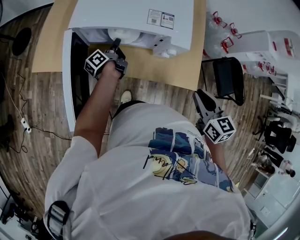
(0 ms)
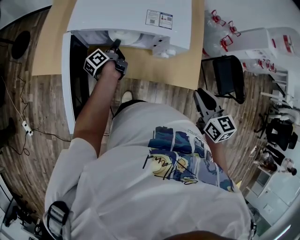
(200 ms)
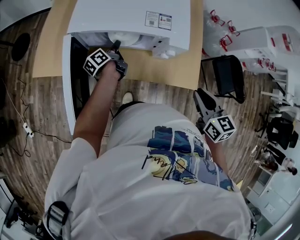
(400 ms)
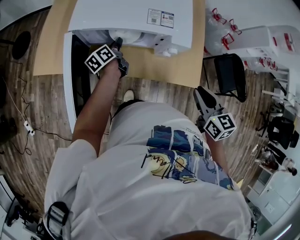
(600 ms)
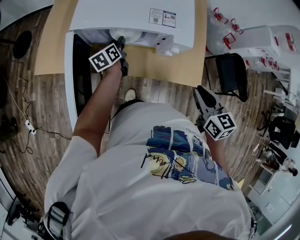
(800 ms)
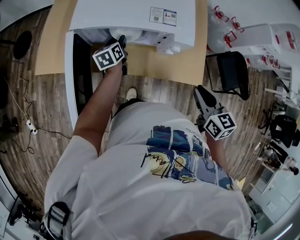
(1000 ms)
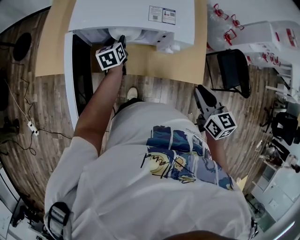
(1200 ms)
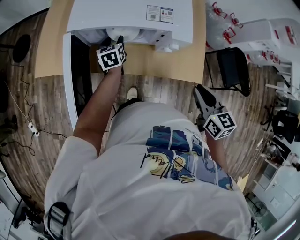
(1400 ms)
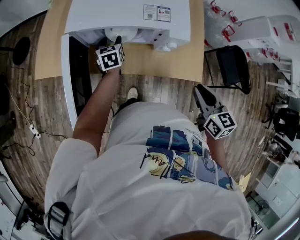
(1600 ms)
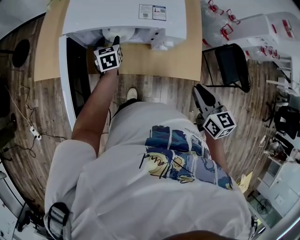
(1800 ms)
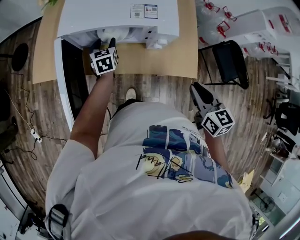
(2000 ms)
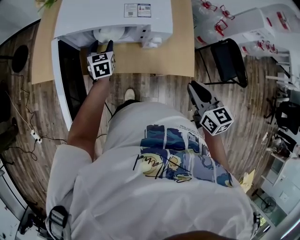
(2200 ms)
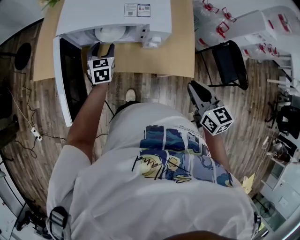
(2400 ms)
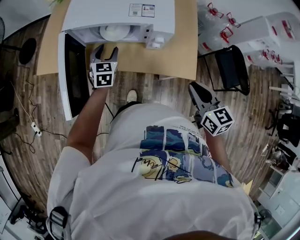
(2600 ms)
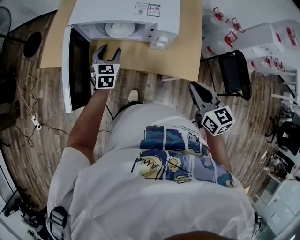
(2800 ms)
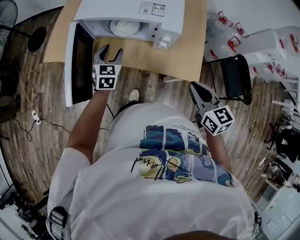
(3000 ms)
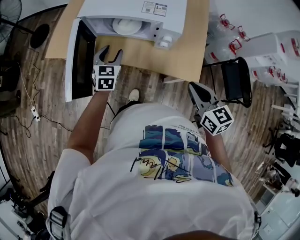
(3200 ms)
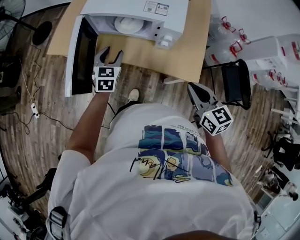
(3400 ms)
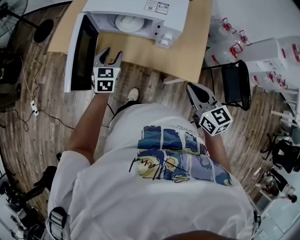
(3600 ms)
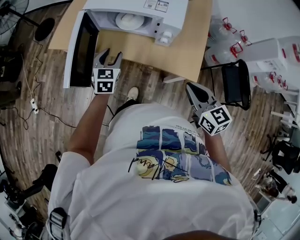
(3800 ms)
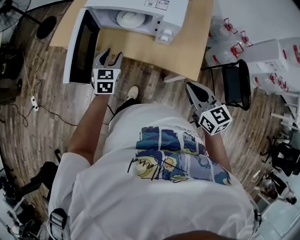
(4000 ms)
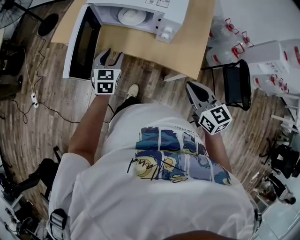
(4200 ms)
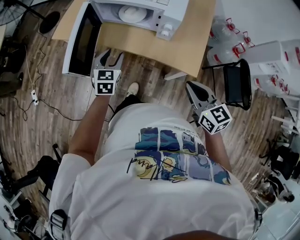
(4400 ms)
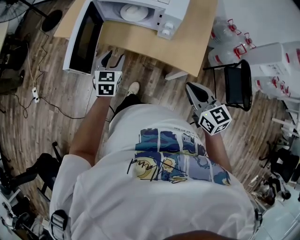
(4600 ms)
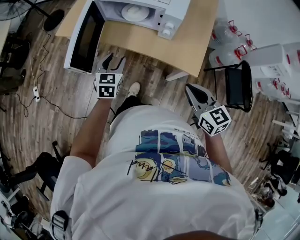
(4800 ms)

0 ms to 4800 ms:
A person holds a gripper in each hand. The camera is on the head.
0 ms to 1600 ms: The left gripper rotates around the line of its fingers by about 70 degrees, clockwise from behind, and opens its fingers.
1600 ms to 3200 ms: The left gripper travels backward and upward by approximately 15 cm, and rotates about 20 degrees.
3200 ms to 4800 ms: The right gripper heads backward, covering about 10 cm. Meanwhile the left gripper goes about 15 cm backward.

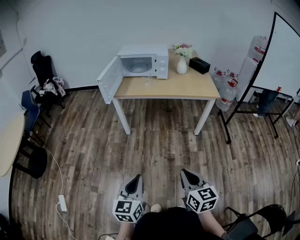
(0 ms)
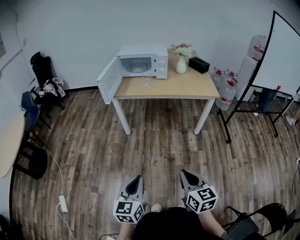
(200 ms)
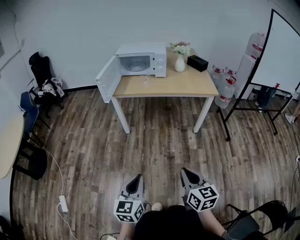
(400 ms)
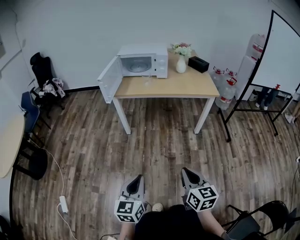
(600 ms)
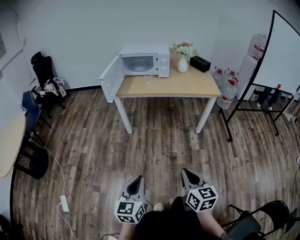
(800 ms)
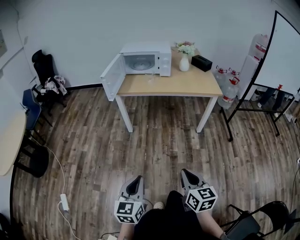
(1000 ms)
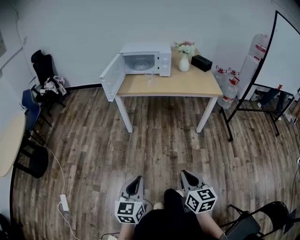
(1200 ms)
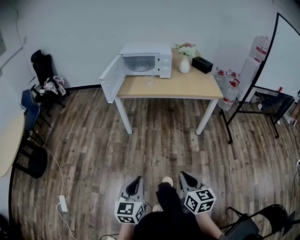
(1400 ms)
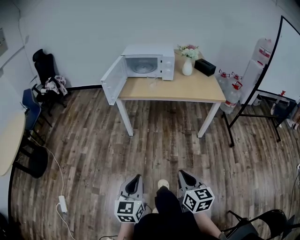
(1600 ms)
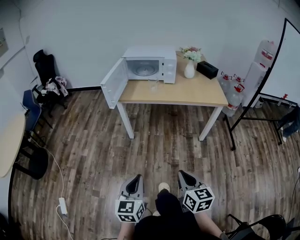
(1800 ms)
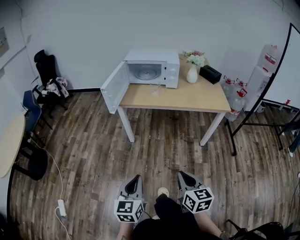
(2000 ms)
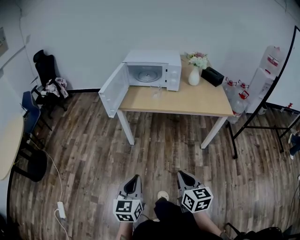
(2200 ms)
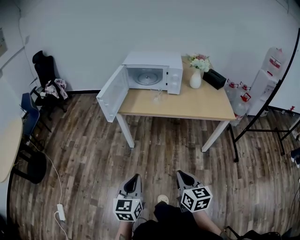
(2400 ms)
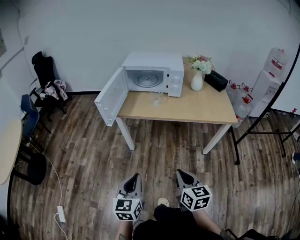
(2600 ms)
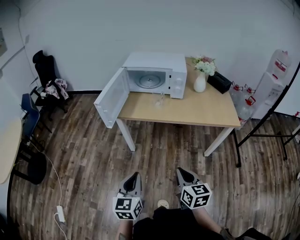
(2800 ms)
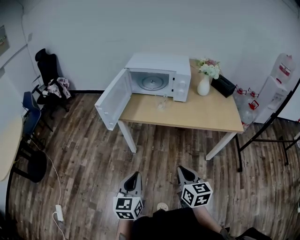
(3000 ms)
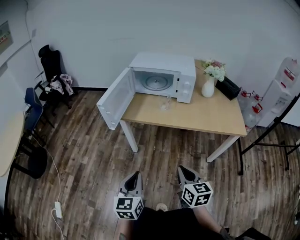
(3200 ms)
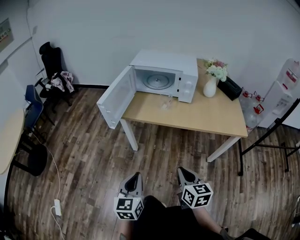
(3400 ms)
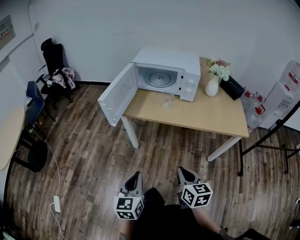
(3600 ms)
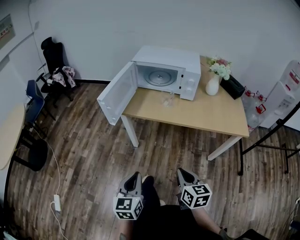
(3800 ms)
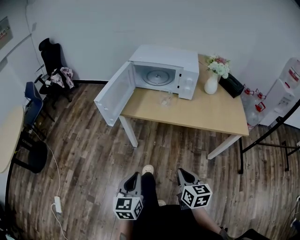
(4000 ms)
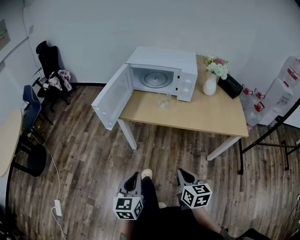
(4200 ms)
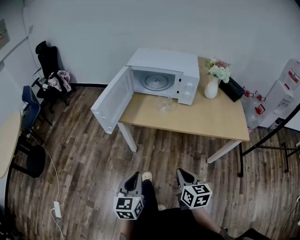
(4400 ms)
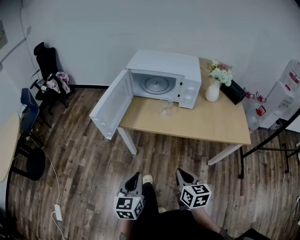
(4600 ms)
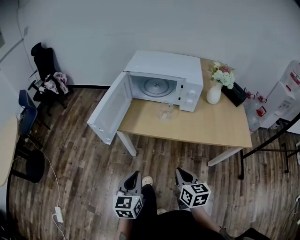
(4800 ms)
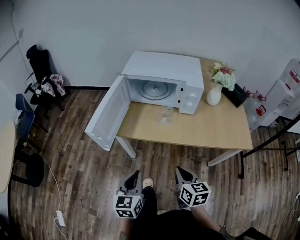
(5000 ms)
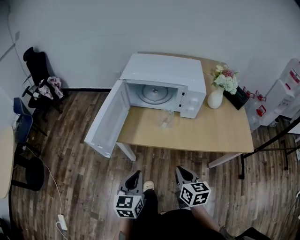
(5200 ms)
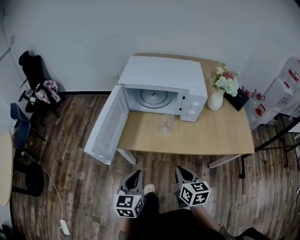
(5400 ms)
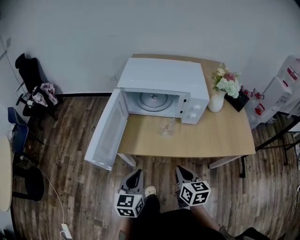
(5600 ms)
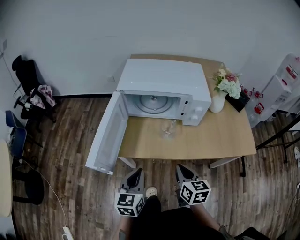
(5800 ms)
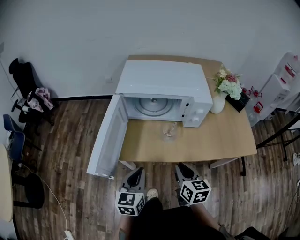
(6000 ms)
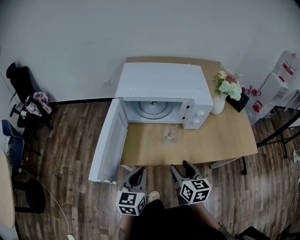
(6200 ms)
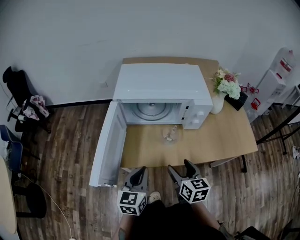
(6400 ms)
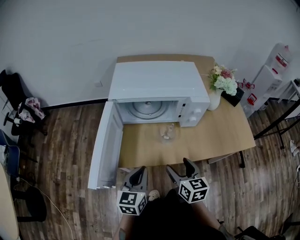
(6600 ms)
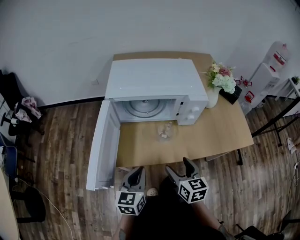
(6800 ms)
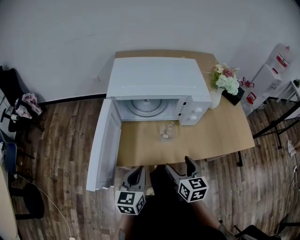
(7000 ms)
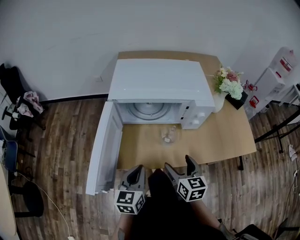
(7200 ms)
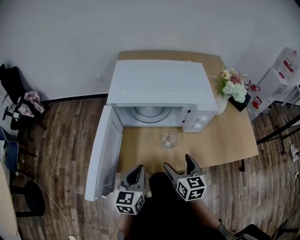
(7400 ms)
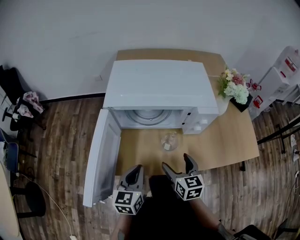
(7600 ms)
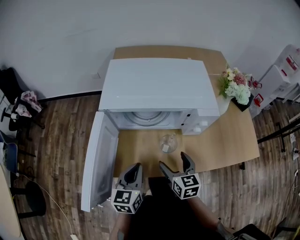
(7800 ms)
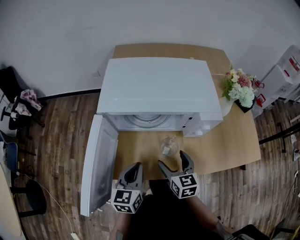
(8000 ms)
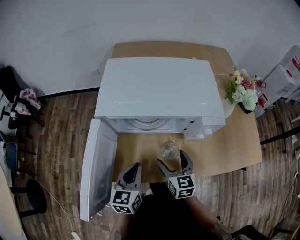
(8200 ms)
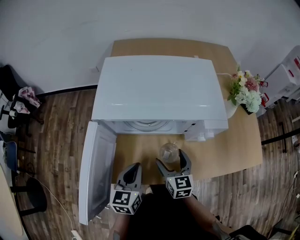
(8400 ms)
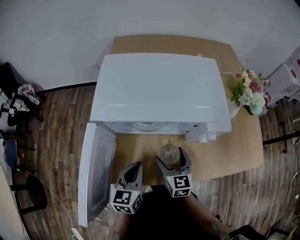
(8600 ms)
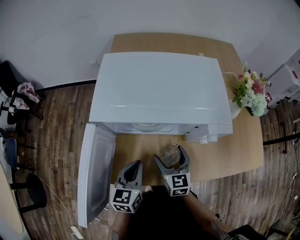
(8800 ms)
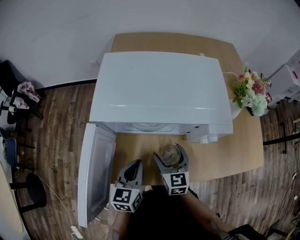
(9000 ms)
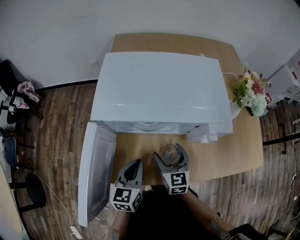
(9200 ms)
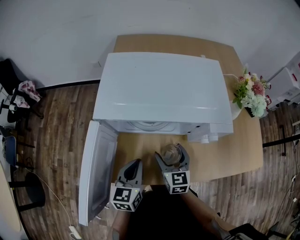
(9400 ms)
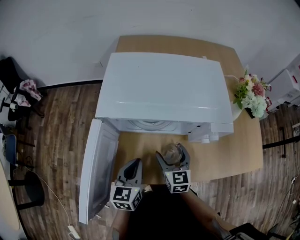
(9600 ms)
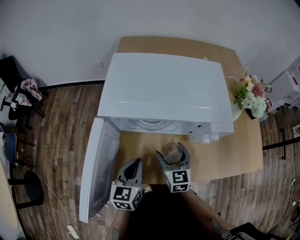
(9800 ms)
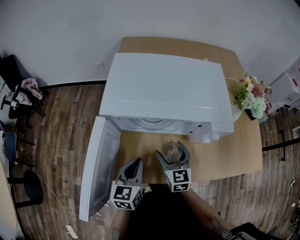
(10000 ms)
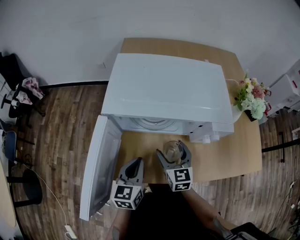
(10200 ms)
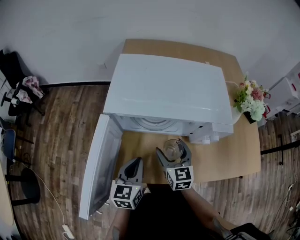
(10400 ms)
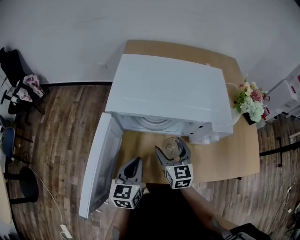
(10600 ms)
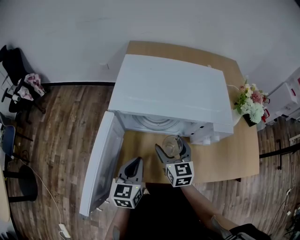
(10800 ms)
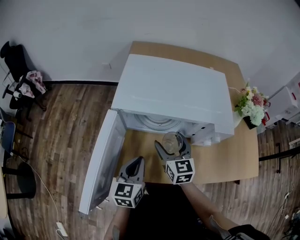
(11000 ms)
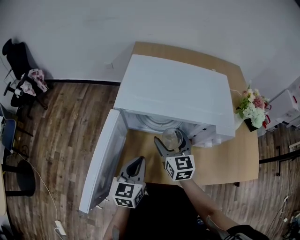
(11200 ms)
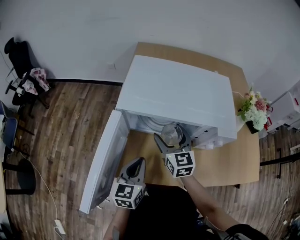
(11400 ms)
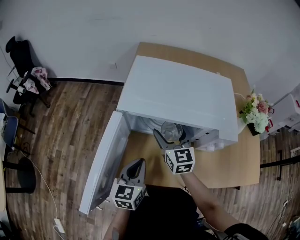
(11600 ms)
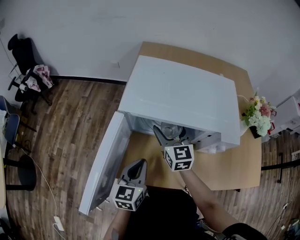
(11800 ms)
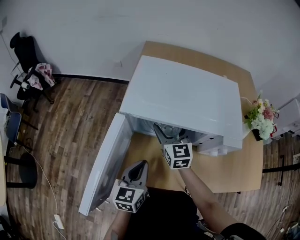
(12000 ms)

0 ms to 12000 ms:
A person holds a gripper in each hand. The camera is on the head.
0 ms to 1600 ms: The right gripper moves about 5 cm.
1600 ms to 3000 ms: Both grippers move forward, roughly 30 cm.
3000 ms to 4400 ms: Both grippers travel together forward, approximately 5 cm.
4400 ms to 6000 ms: Both grippers travel together forward, some 25 cm.
6000 ms to 7600 ms: The two grippers go some 10 cm forward. The right gripper opens.
7600 ms to 9000 ms: The two grippers go approximately 10 cm forward.
9000 ms to 10400 ms: The grippers stay close to where they were, moving slightly.
10400 ms to 12000 ms: The right gripper moves forward, to the left and upward, roughly 15 cm.

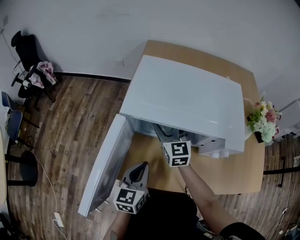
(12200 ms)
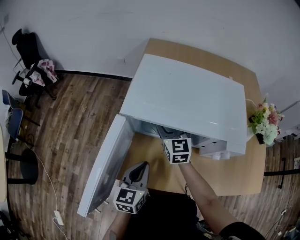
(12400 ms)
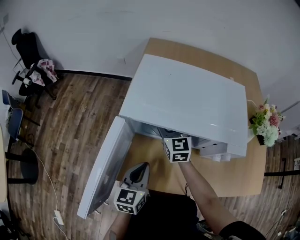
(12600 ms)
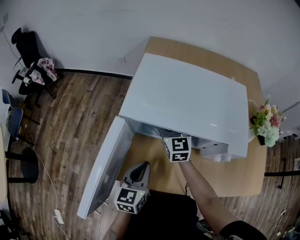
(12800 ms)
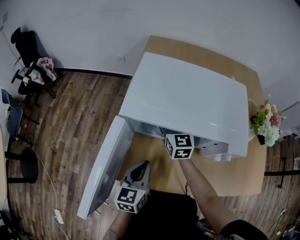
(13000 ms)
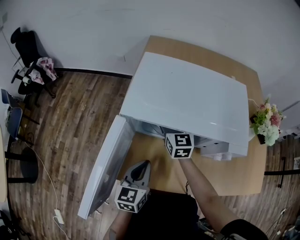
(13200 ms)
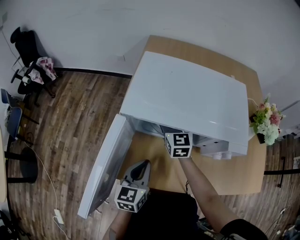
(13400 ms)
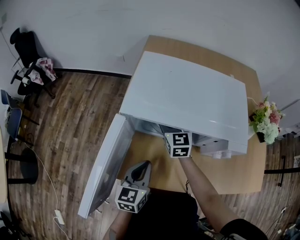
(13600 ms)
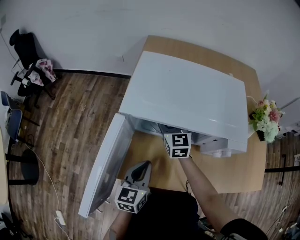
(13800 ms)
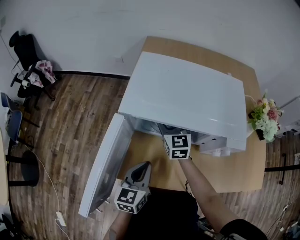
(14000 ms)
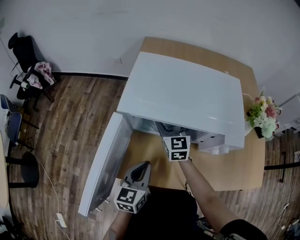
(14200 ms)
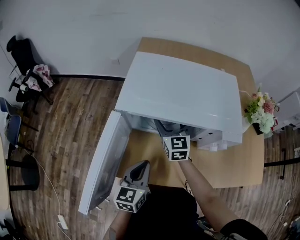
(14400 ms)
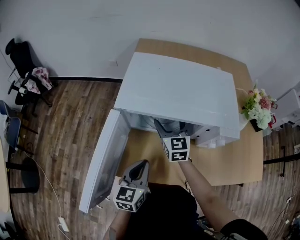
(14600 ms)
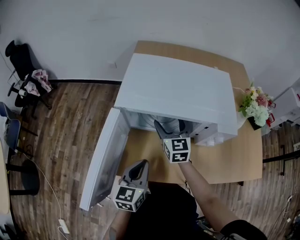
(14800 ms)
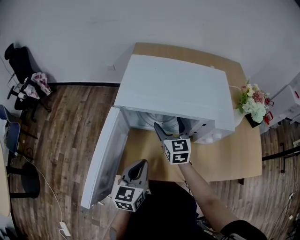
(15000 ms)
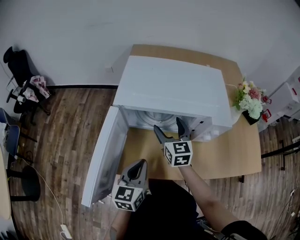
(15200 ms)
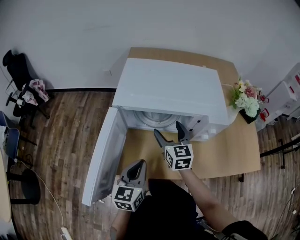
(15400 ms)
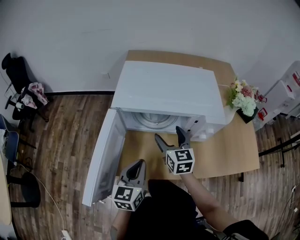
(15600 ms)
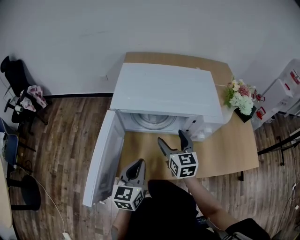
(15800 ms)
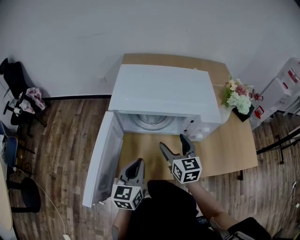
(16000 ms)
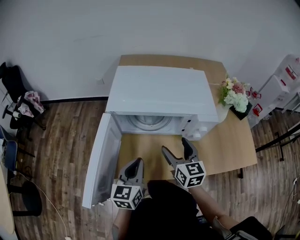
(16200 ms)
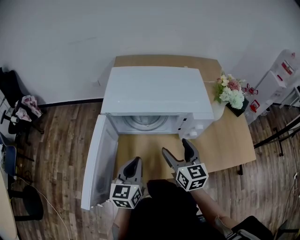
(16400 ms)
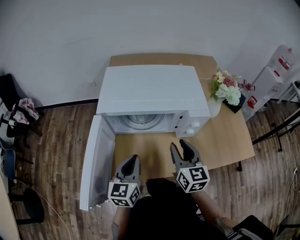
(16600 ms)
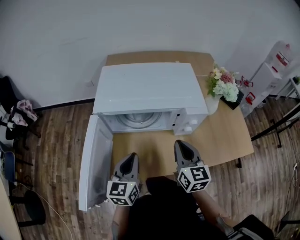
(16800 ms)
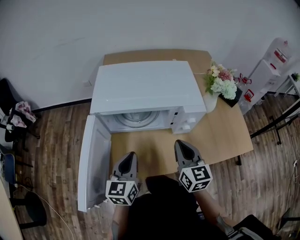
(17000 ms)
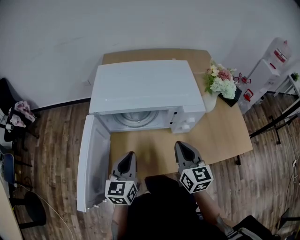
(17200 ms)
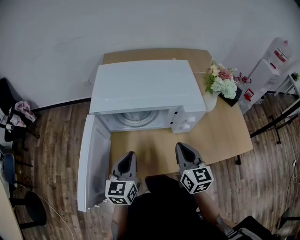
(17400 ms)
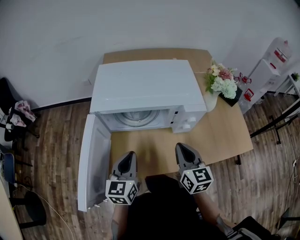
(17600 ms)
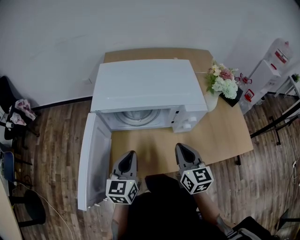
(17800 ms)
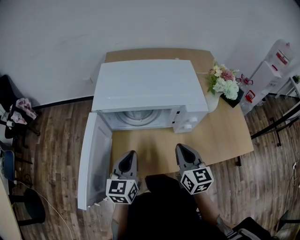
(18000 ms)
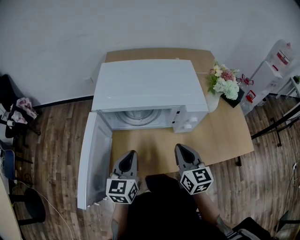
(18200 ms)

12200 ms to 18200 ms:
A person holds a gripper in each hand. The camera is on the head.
12200 ms to 13800 ms: The grippers make only small movements.
13800 ms to 15200 ms: The left gripper moves about 5 cm. The right gripper moves backward, about 10 cm.
15200 ms to 16600 ms: The right gripper heads backward, to the right and upward, covering approximately 15 cm, and closes.
16600 ms to 18200 ms: The right gripper closes its fingers.

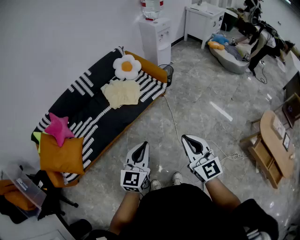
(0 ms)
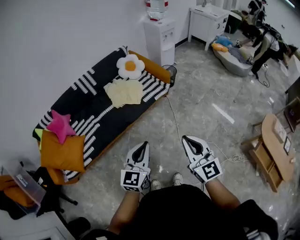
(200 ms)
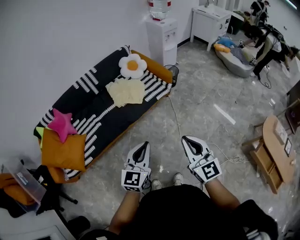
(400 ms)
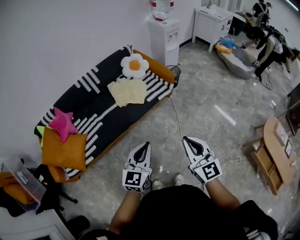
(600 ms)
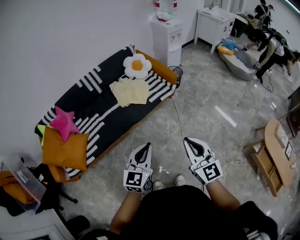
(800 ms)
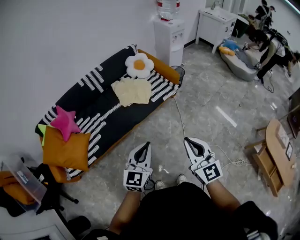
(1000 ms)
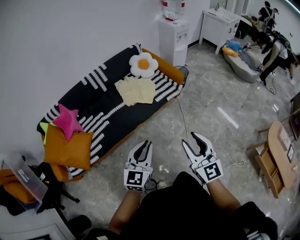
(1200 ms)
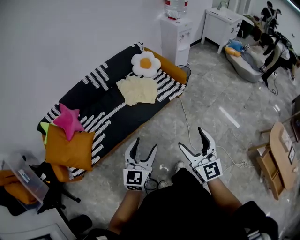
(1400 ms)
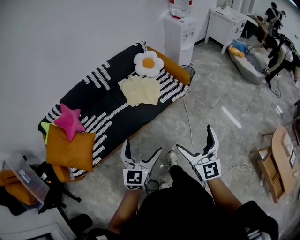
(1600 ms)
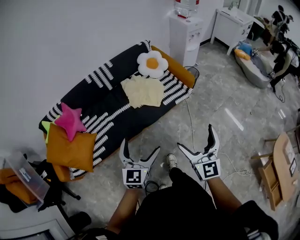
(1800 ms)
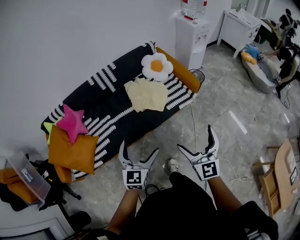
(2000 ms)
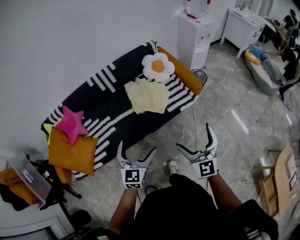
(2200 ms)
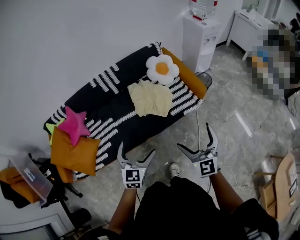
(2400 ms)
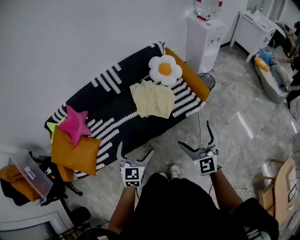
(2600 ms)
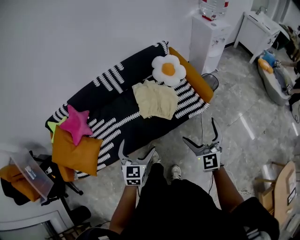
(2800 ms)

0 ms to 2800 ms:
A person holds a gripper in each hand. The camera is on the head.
0 ms to 1400 ms: The grippers both shift to the left by roughly 10 cm. The right gripper opens, while the left gripper opens up.
1400 ms to 2800 ms: The two grippers go about 30 cm forward. The right gripper opens. The left gripper rotates roughly 20 degrees, and opens up.
